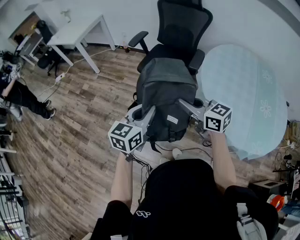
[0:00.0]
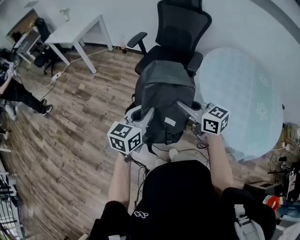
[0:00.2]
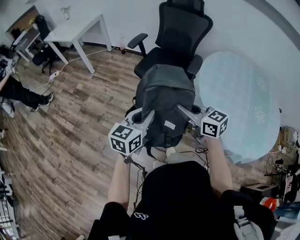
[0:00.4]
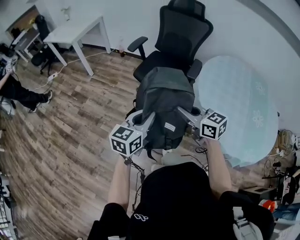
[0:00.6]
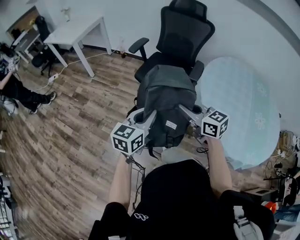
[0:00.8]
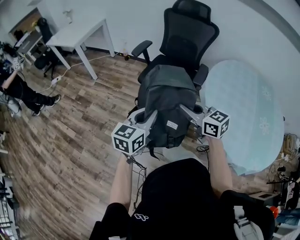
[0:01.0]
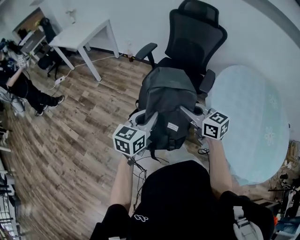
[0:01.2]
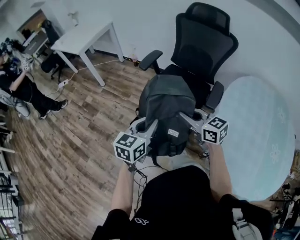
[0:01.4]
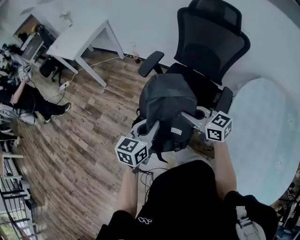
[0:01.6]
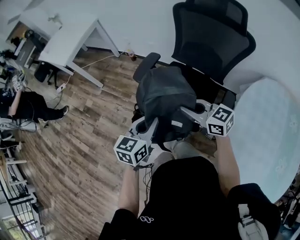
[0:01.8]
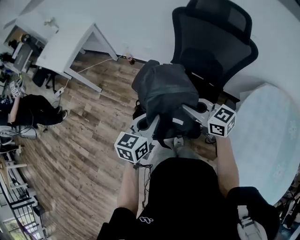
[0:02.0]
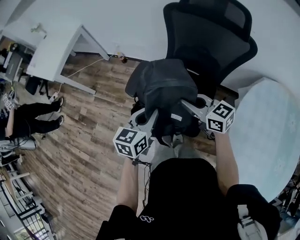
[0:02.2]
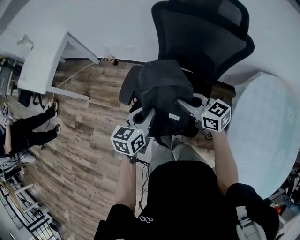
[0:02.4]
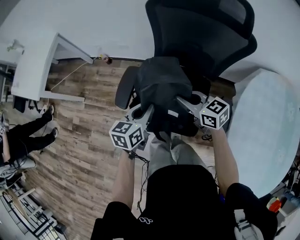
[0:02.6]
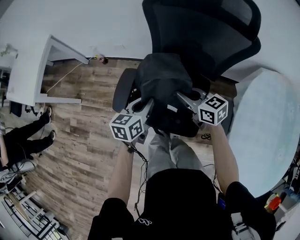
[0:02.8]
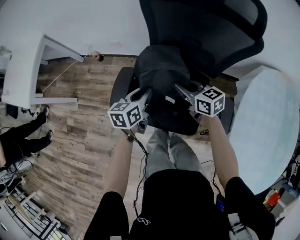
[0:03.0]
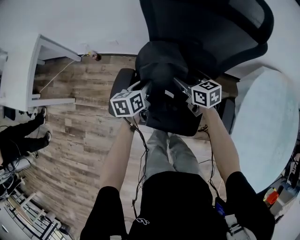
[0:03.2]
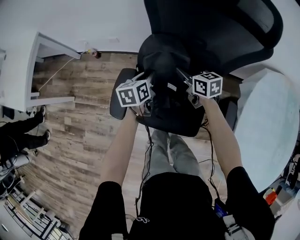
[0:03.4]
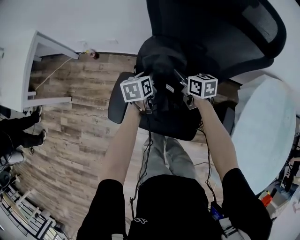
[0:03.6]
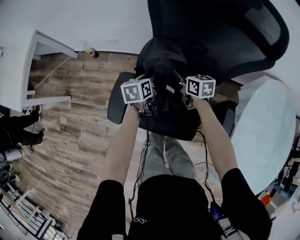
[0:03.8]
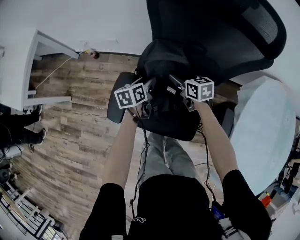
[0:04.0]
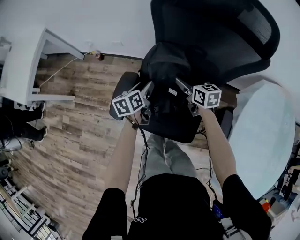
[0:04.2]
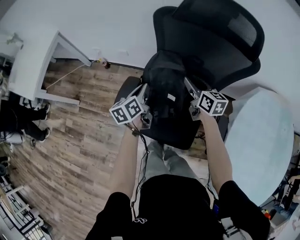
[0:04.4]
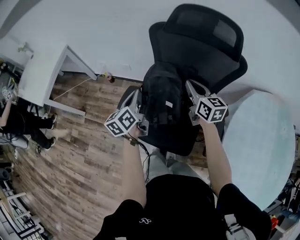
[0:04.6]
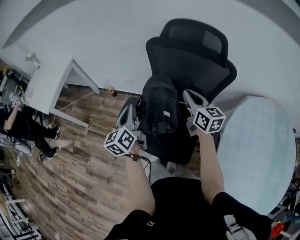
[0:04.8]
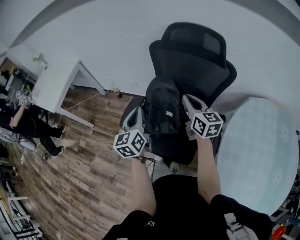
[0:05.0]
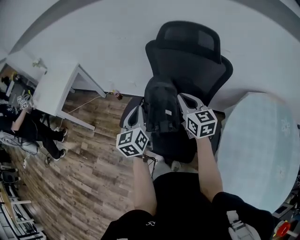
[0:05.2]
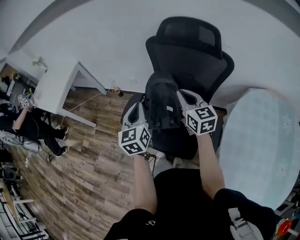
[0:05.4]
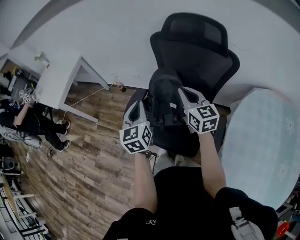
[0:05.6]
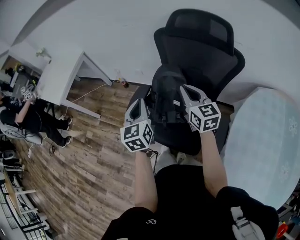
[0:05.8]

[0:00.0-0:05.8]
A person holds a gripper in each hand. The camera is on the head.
0:00.0 to 0:01.4: Both grippers move forward, some 25 cm.
0:01.4 to 0:02.8: The pair of grippers is taken forward, some 50 cm. The left gripper rotates about 20 degrees; the right gripper changes its angle by roughly 20 degrees.
0:02.8 to 0:04.4: The left gripper is displaced forward by some 10 cm, rotates some 20 degrees, and opens and closes again. The right gripper travels forward and to the right by approximately 15 cm, rotates about 20 degrees, and opens.
0:04.4 to 0:05.8: Both grippers move upward and backward, about 20 cm. The left gripper changes its angle by some 40 degrees; the right gripper changes its angle by roughly 20 degrees, and closes its fingers.

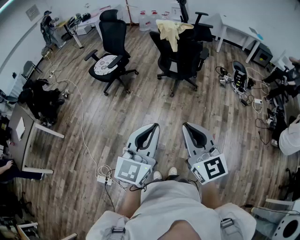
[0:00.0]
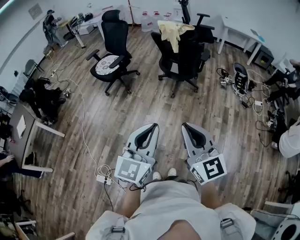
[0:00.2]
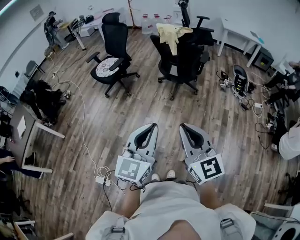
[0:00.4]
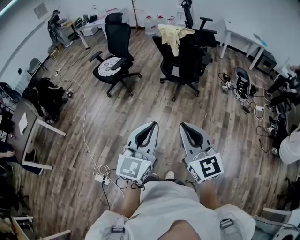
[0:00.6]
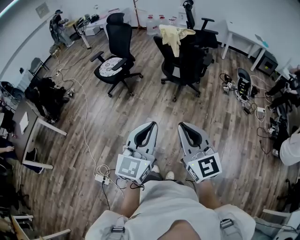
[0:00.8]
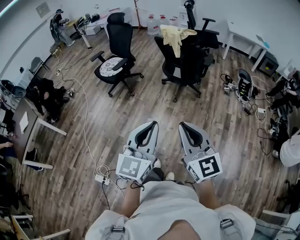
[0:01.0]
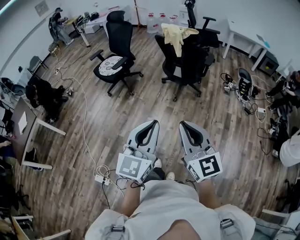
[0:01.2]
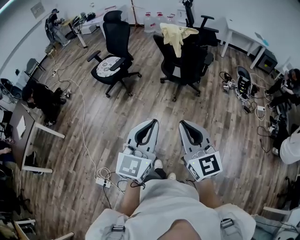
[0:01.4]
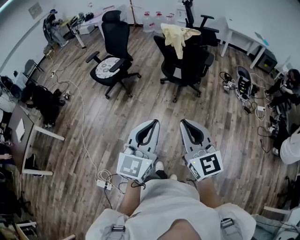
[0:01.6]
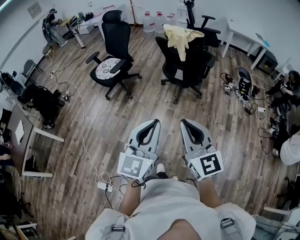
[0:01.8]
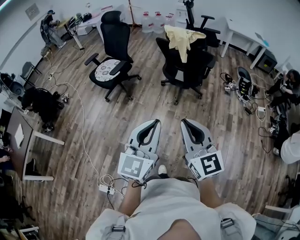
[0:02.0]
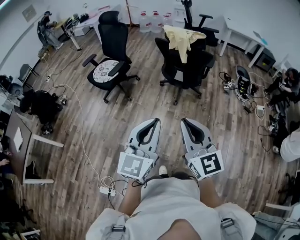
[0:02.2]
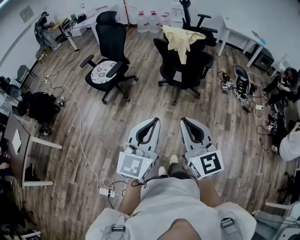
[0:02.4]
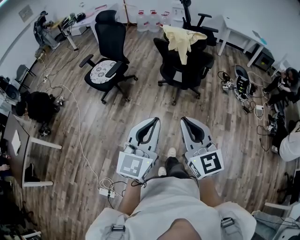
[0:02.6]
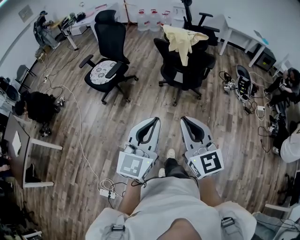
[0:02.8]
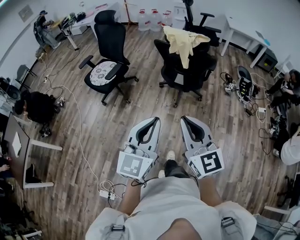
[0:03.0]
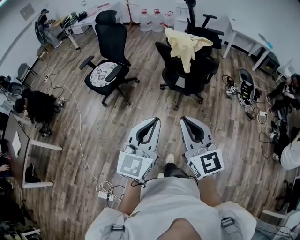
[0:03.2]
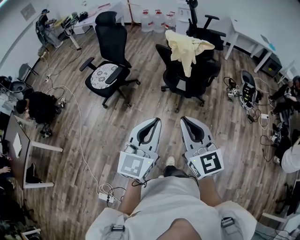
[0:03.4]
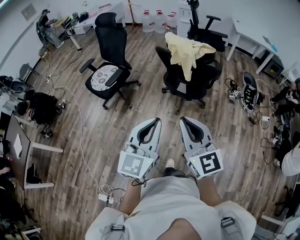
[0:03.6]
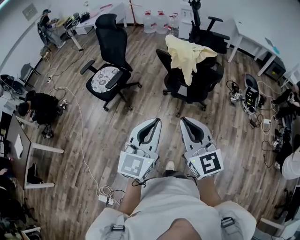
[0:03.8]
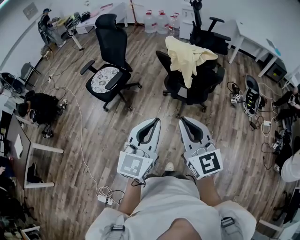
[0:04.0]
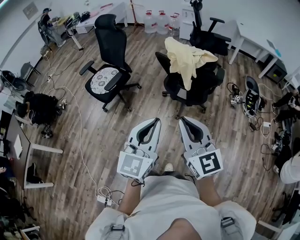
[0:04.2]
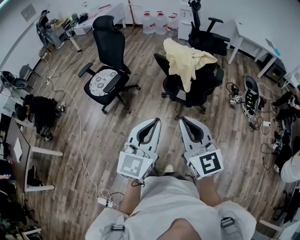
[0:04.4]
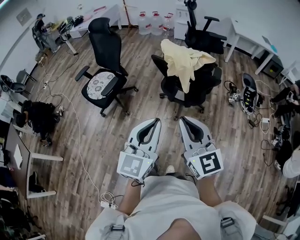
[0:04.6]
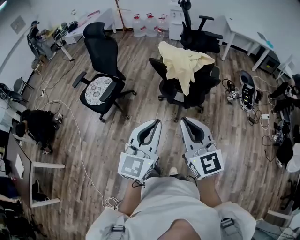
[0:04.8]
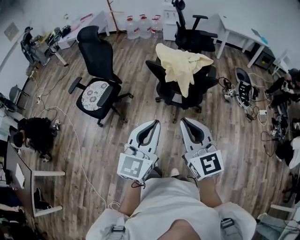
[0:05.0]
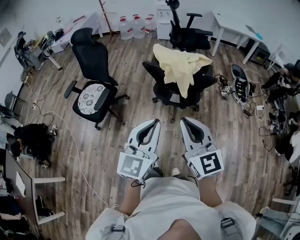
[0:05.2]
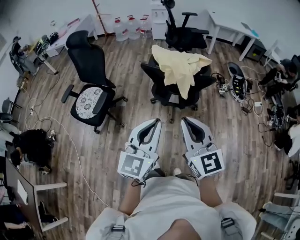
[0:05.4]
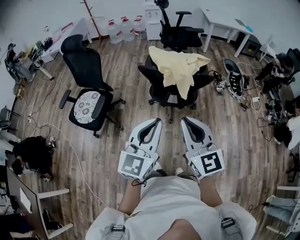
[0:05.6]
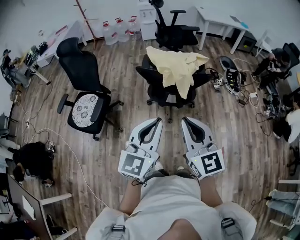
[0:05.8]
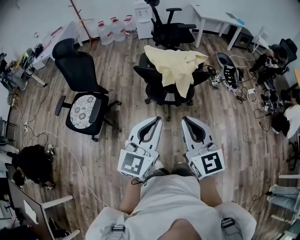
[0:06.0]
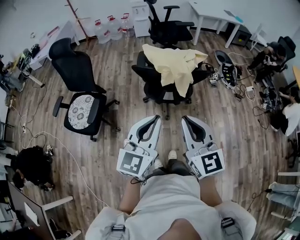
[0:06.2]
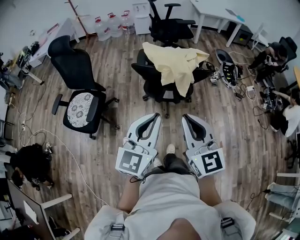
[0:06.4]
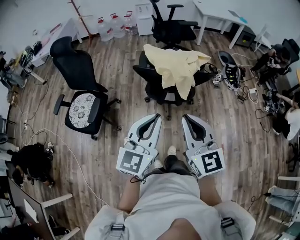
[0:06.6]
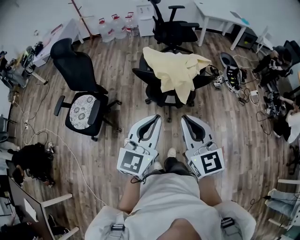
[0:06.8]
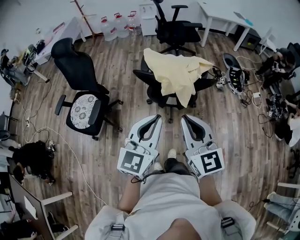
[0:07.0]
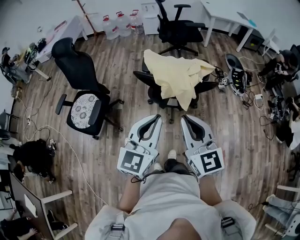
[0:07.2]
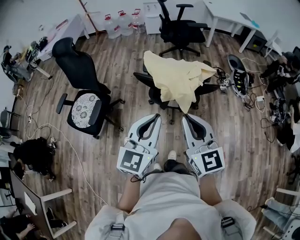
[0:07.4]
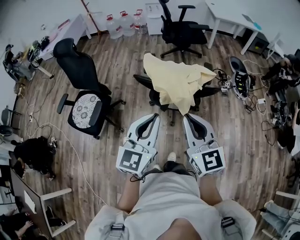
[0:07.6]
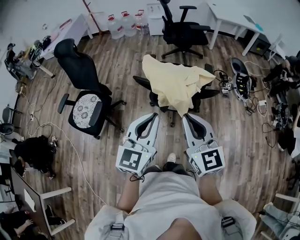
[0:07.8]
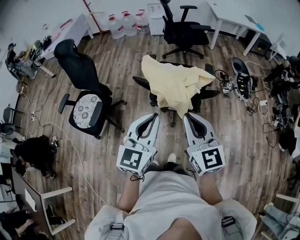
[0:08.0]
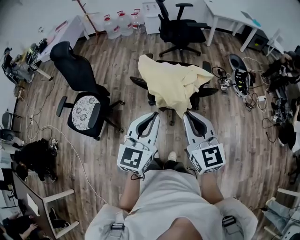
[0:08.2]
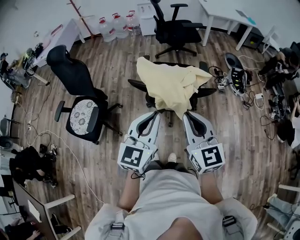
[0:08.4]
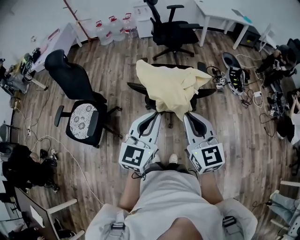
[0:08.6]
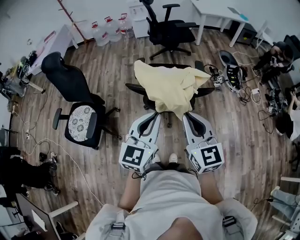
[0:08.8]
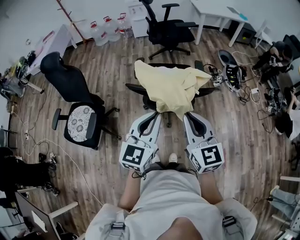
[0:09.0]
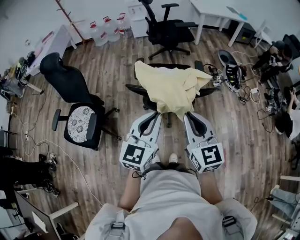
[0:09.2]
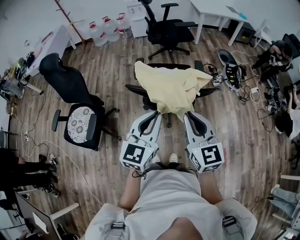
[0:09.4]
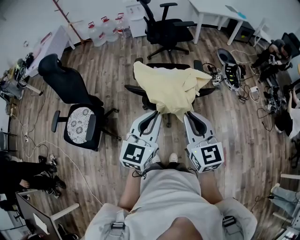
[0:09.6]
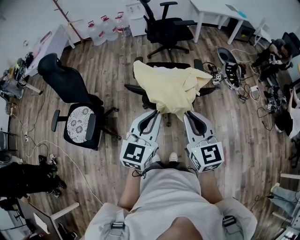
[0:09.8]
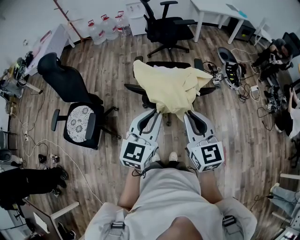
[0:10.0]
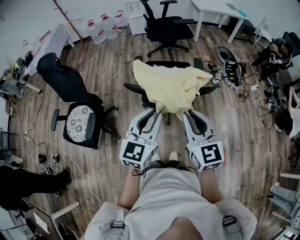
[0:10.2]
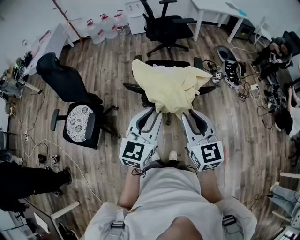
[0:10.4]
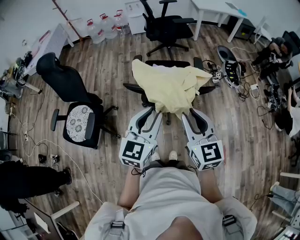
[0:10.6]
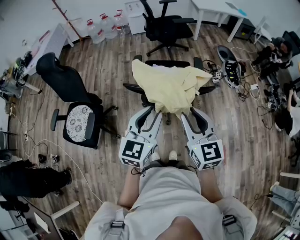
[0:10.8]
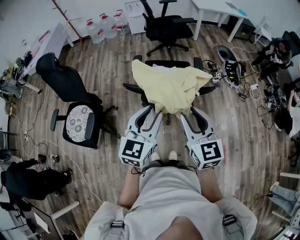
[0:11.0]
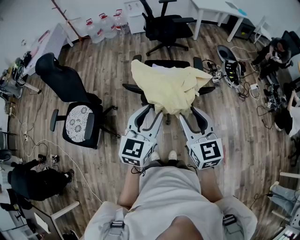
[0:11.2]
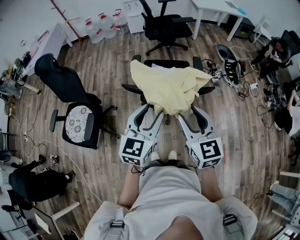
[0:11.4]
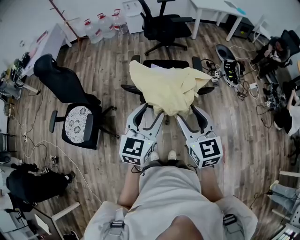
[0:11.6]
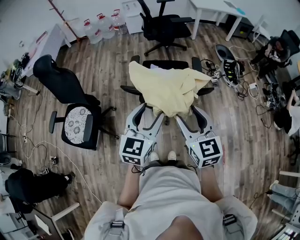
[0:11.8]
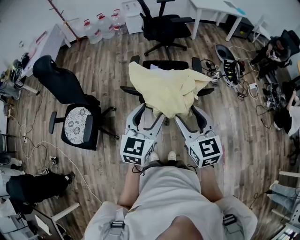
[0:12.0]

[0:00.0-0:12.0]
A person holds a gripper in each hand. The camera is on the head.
0:00.0 to 0:01.6: The grippers both shift forward by about 10 cm.
0:01.6 to 0:03.0: Both grippers move forward, roughly 15 cm.
0:03.0 to 0:04.4: Both grippers travel together forward, approximately 15 cm.
0:04.4 to 0:06.0: Both grippers move forward and to the left, roughly 10 cm. The left gripper turns by about 20 degrees; the right gripper changes its angle by roughly 20 degrees.
0:06.0 to 0:07.6: The two grippers go approximately 15 cm forward.
0:07.6 to 0:09.0: The left gripper moves forward, some 5 cm.
0:09.0 to 0:10.4: The grippers move only a little.
0:10.4 to 0:12.0: The left gripper opens up. Meanwhile the right gripper opens its fingers.

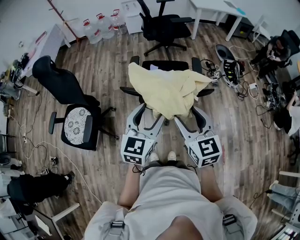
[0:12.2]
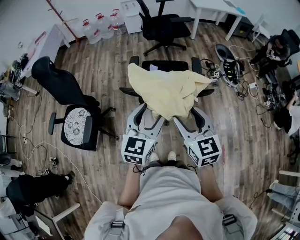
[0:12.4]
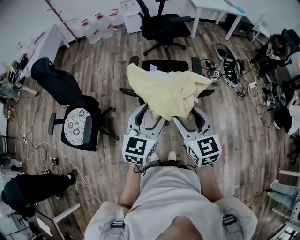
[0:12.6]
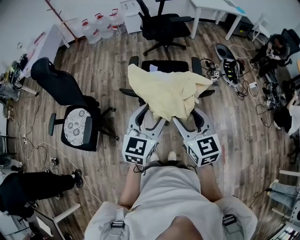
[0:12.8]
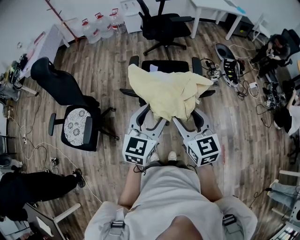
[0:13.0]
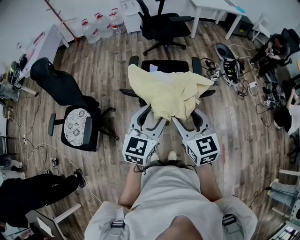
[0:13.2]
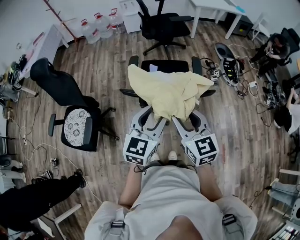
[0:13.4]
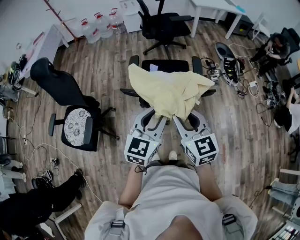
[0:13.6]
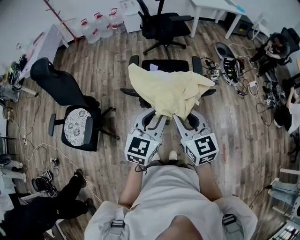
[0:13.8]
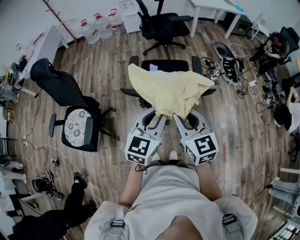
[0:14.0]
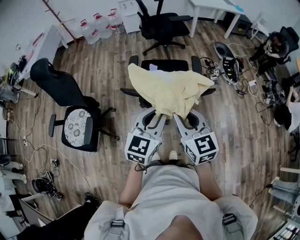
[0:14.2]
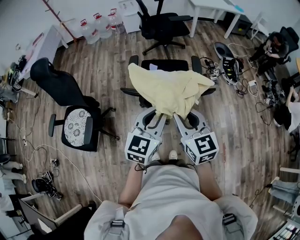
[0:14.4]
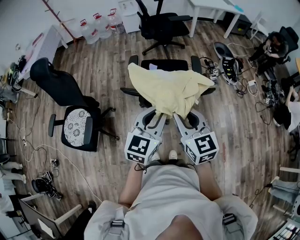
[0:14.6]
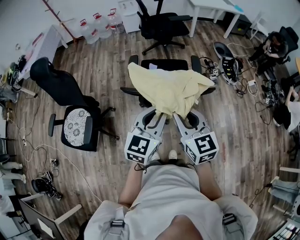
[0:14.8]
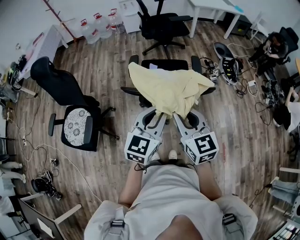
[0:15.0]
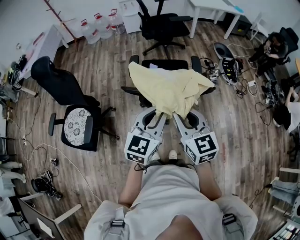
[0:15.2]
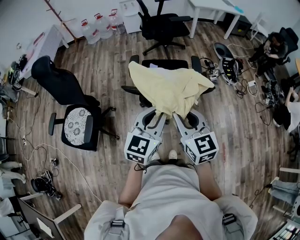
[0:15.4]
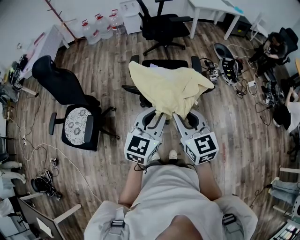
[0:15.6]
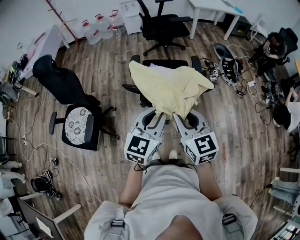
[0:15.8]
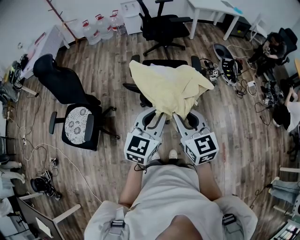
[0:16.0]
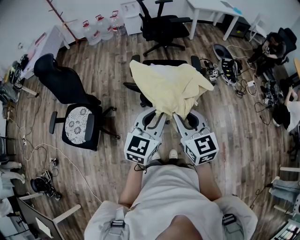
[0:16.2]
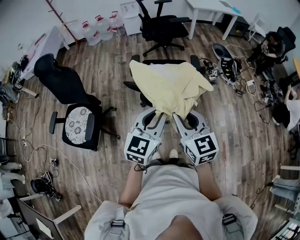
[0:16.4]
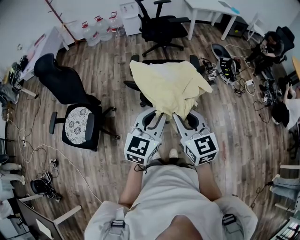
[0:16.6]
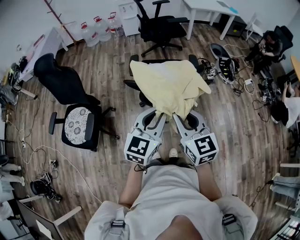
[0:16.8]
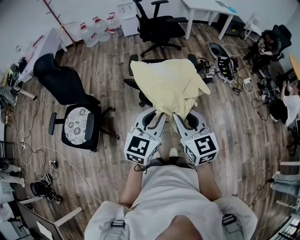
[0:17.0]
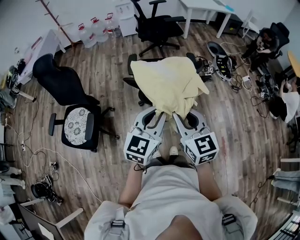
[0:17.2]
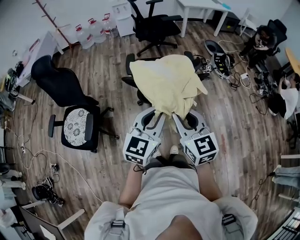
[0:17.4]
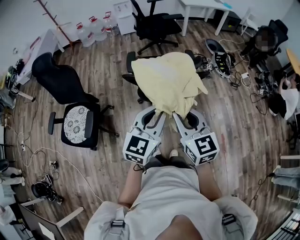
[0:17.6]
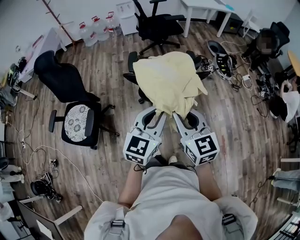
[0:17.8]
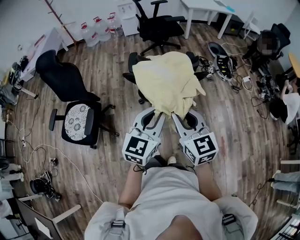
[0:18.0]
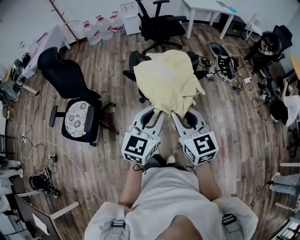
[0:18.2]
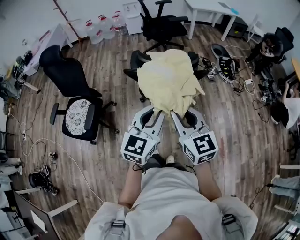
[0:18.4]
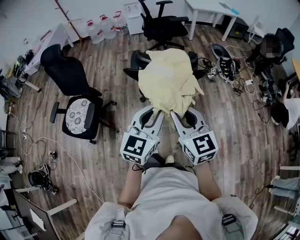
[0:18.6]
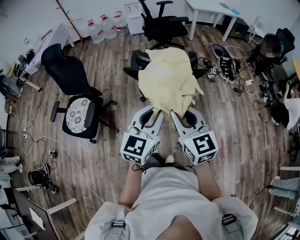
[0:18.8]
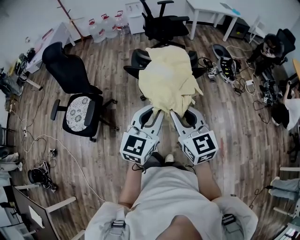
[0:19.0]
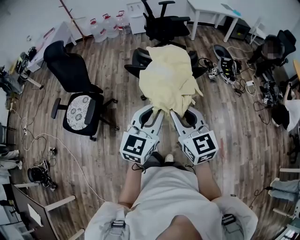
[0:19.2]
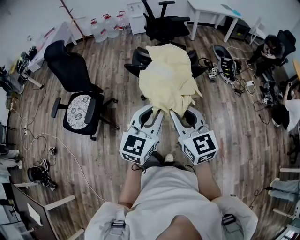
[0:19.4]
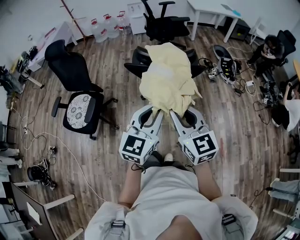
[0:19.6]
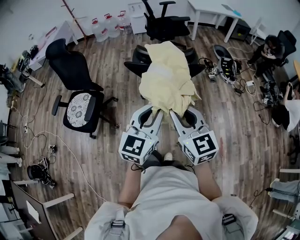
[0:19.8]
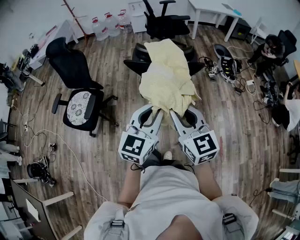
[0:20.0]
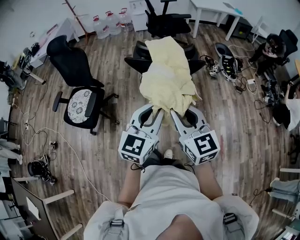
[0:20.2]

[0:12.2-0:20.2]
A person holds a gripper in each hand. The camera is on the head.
0:12.2 to 0:13.8: The right gripper closes up; the left gripper closes.
0:13.8 to 0:15.4: The grippers move only a little.
0:15.4 to 0:17.0: Both grippers move backward, about 5 cm.
0:17.0 to 0:18.6: The grippers both shift backward by about 5 cm.
0:18.6 to 0:20.2: Both grippers move backward, some 5 cm.
